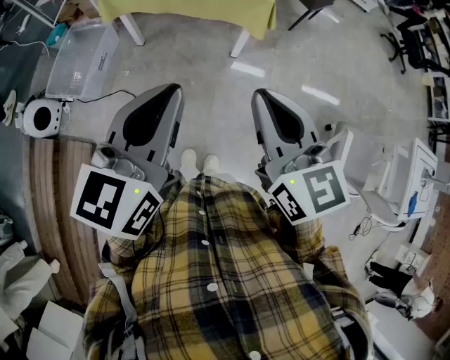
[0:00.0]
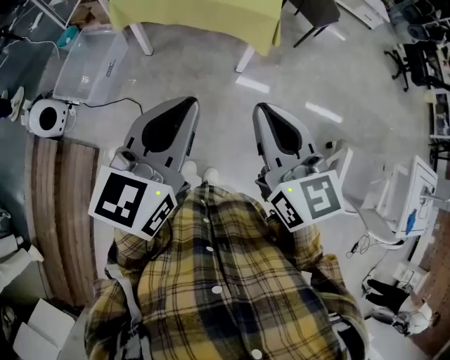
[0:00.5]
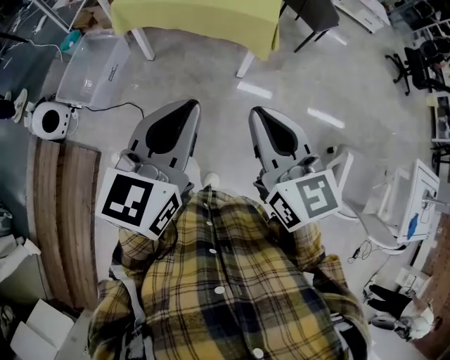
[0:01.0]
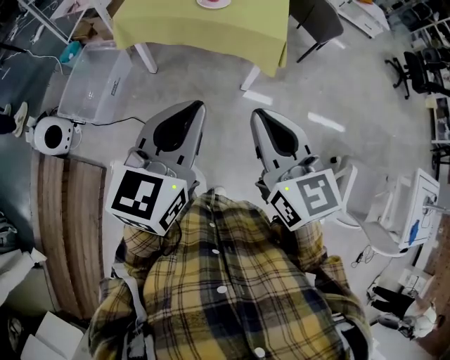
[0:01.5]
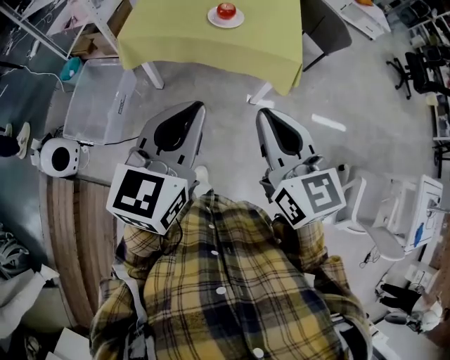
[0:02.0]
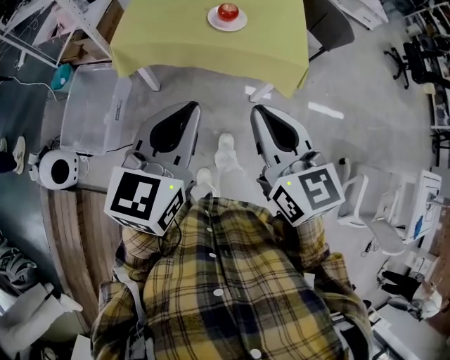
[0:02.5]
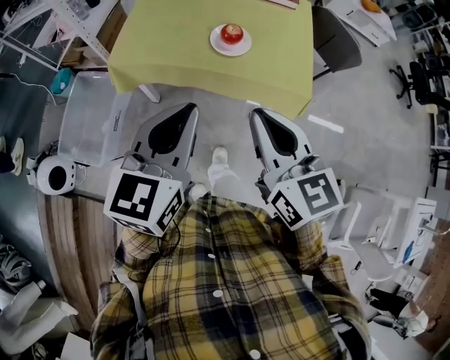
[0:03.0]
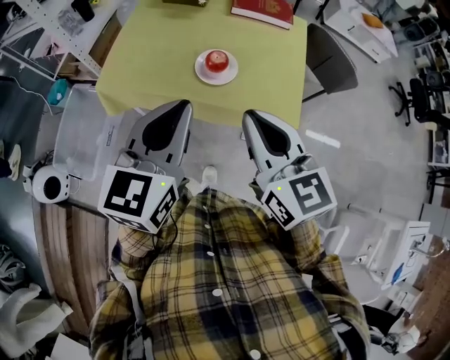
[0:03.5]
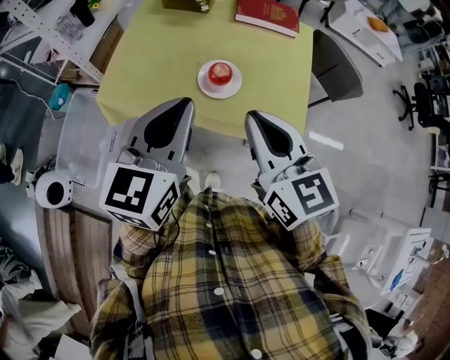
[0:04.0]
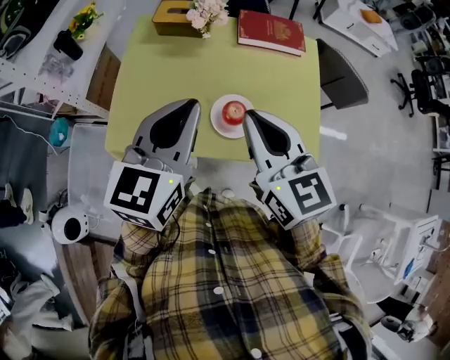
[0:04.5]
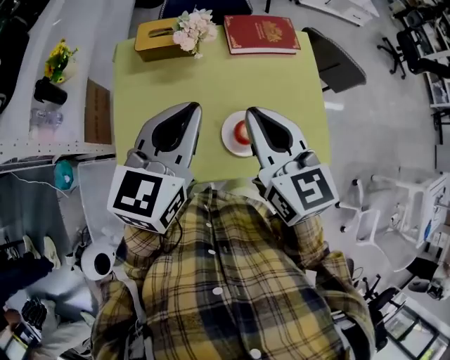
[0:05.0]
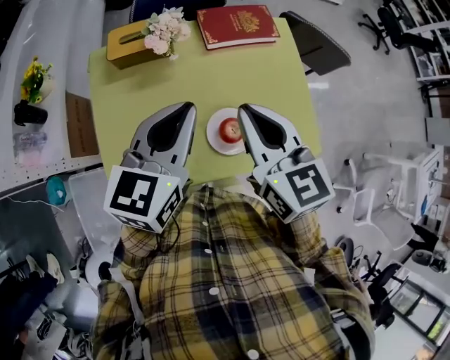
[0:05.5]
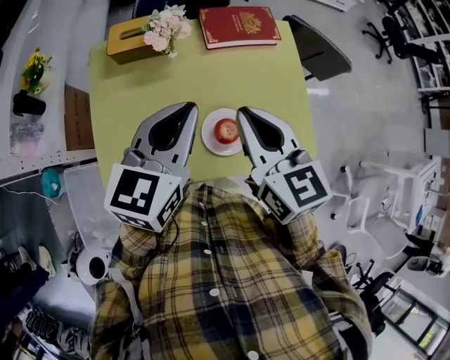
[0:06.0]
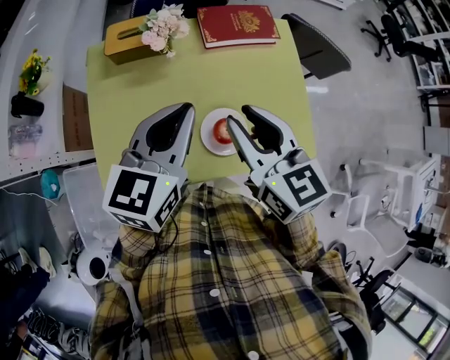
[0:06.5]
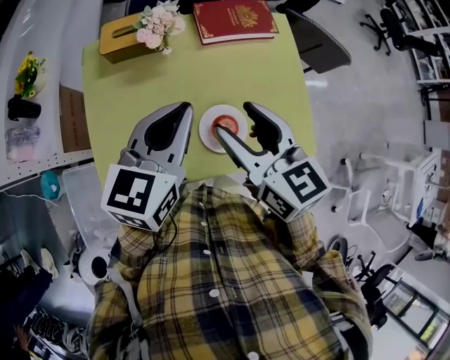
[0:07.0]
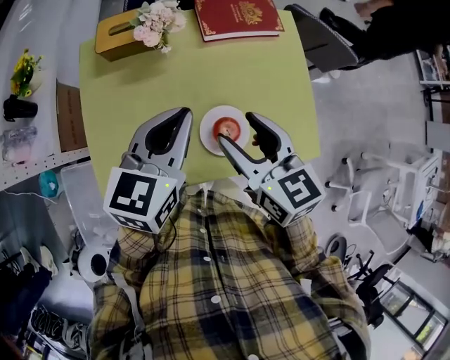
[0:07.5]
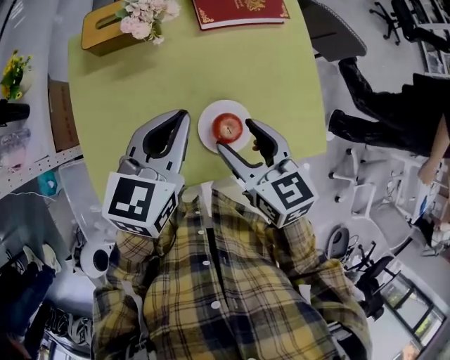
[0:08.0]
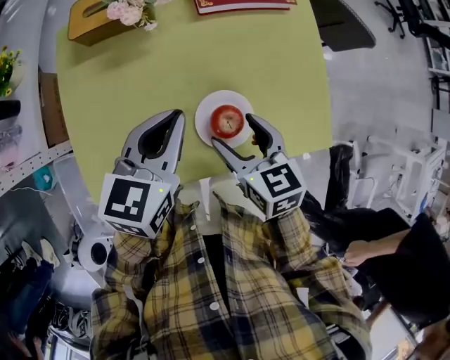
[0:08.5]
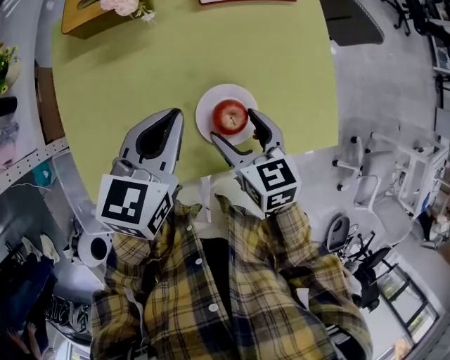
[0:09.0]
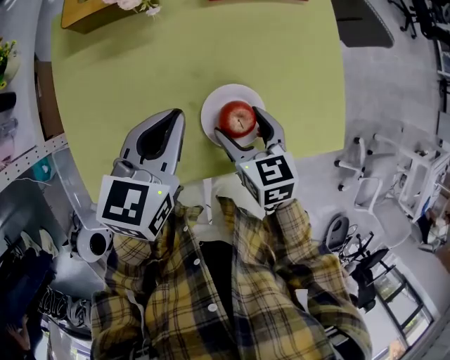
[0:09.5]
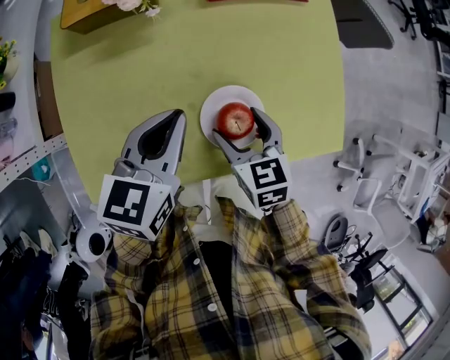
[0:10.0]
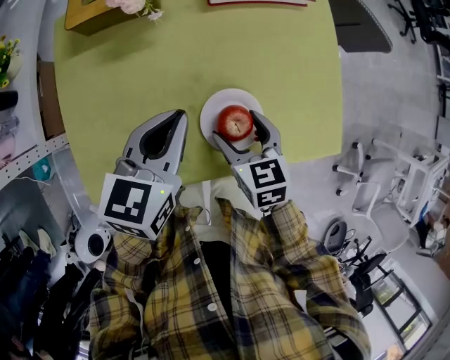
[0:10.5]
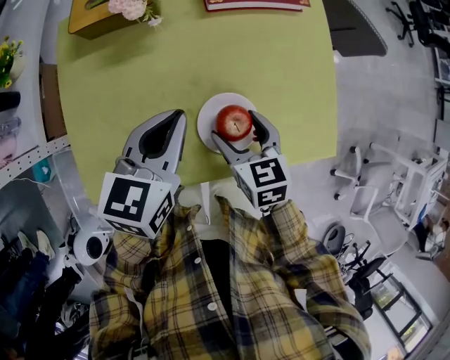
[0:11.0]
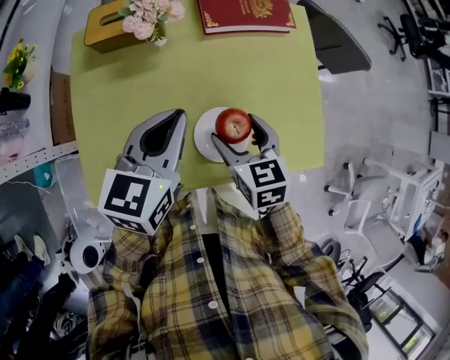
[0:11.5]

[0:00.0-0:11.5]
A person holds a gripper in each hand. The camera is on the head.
0:00.0 to 0:02.0: Both grippers travel together forward and to the left, roughly 20 cm.
0:02.0 to 0:04.0: The grippers both shift forward by some 35 cm.
0:04.0 to 0:06.0: The right gripper changes place by about 25 cm, and turns by approximately 20 degrees. Meanwhile the left gripper shifts by about 25 cm, and changes its angle by about 30 degrees.
0:06.0 to 0:07.5: The two grippers go roughly 5 cm downward. The right gripper opens its fingers.
0:07.5 to 0:09.5: The left gripper goes roughly 15 cm downward. Meanwhile the right gripper heads downward, covering about 20 cm.
0:09.5 to 0:11.5: The two grippers go some 5 cm upward.

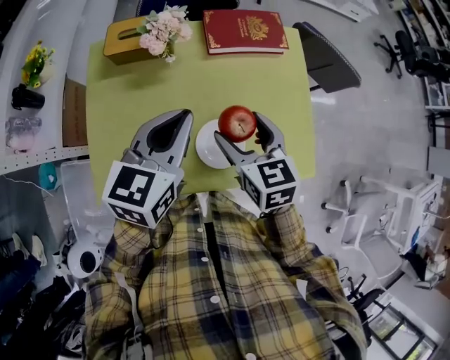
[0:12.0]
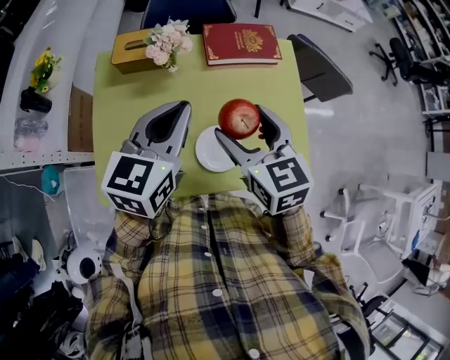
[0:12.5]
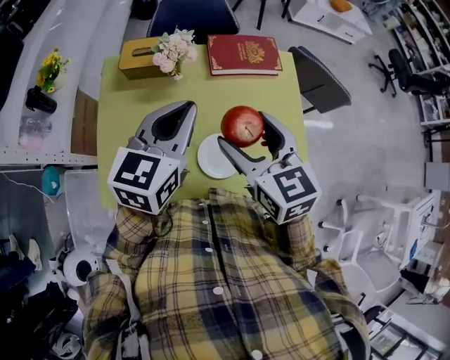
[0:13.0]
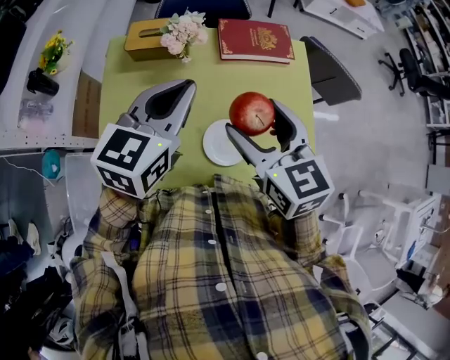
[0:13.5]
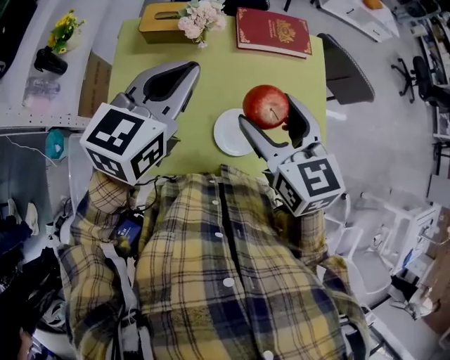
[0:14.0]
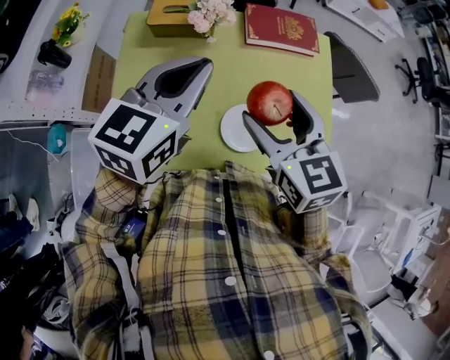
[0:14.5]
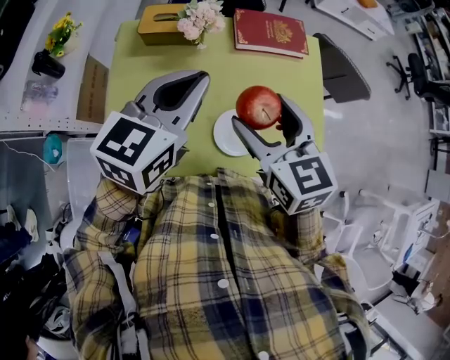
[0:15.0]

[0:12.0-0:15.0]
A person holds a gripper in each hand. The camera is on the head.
0:12.0 to 0:13.5: The left gripper travels upward by about 5 cm. Meanwhile the right gripper is displaced upward by roughly 10 cm.
0:13.5 to 0:15.0: The grippers stay close to where they were, moving slightly.

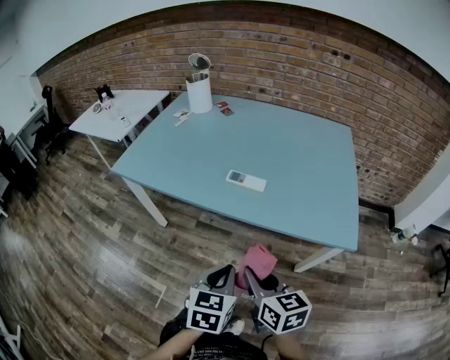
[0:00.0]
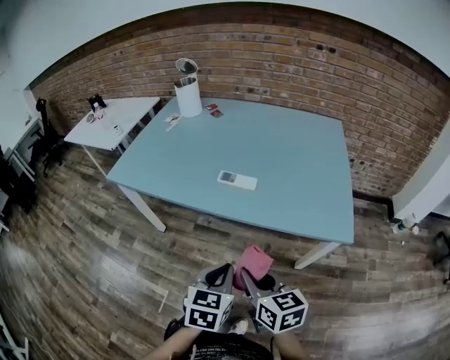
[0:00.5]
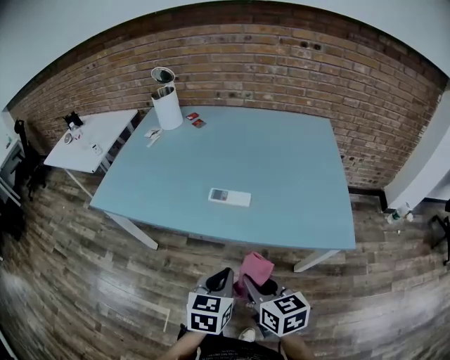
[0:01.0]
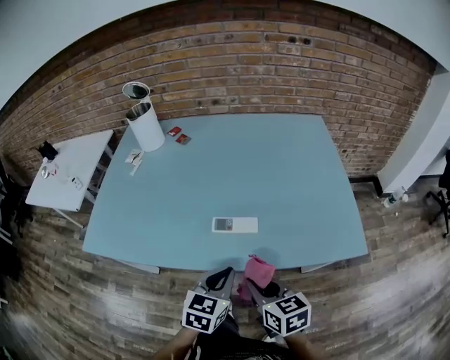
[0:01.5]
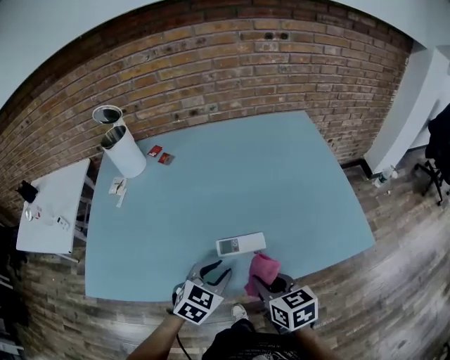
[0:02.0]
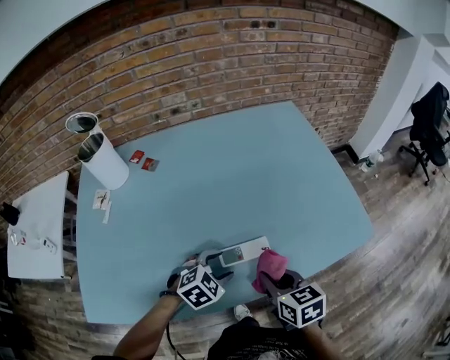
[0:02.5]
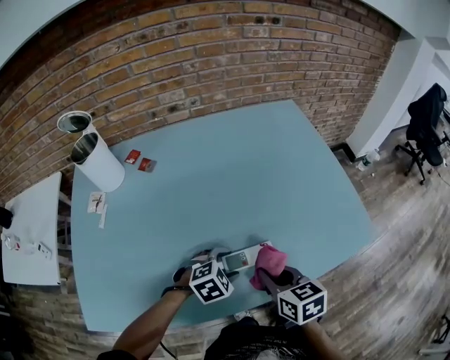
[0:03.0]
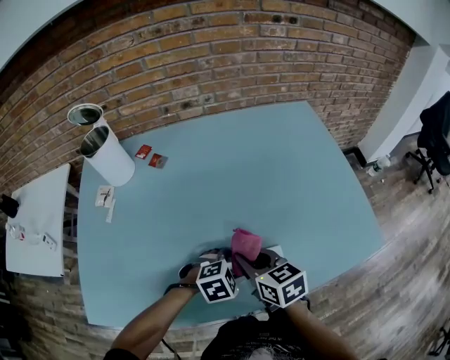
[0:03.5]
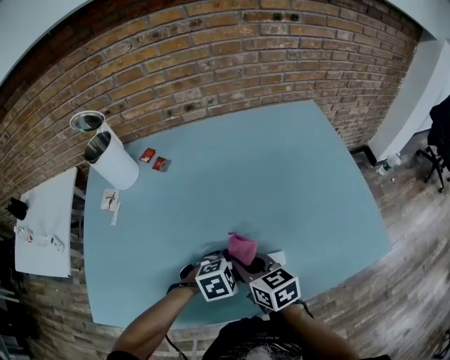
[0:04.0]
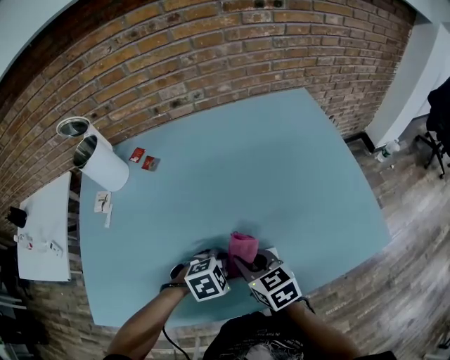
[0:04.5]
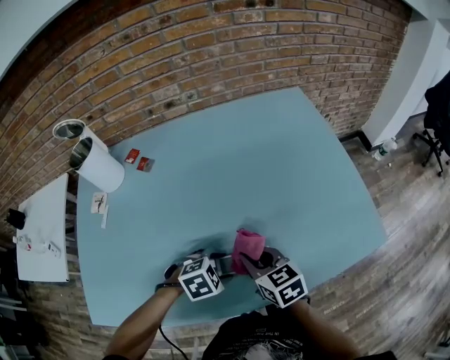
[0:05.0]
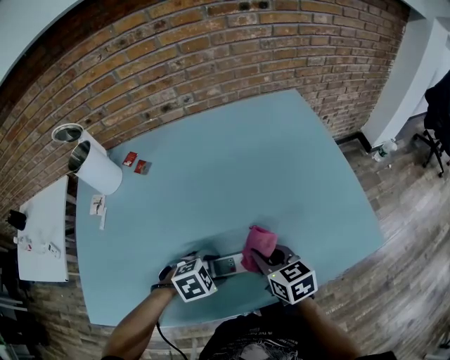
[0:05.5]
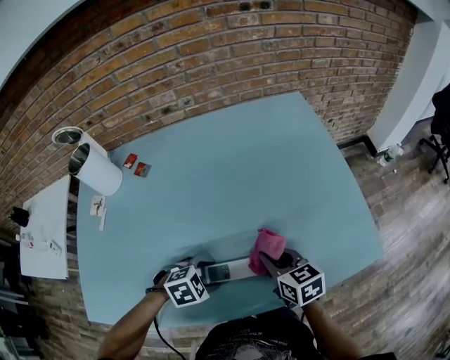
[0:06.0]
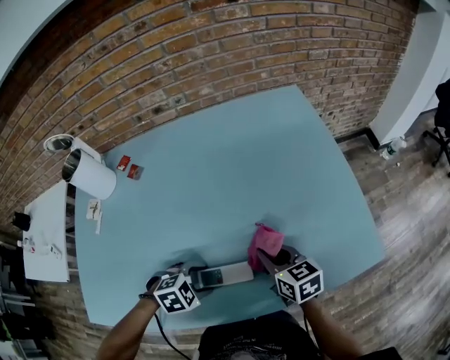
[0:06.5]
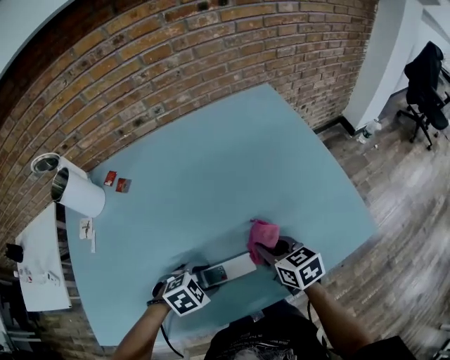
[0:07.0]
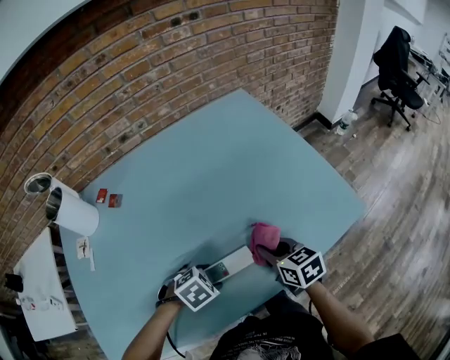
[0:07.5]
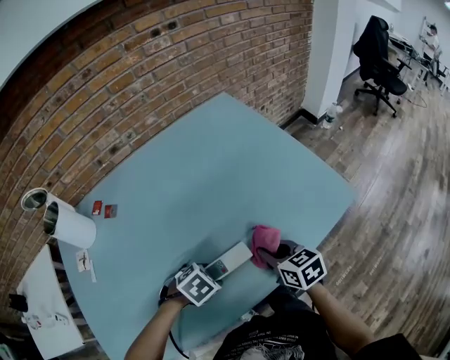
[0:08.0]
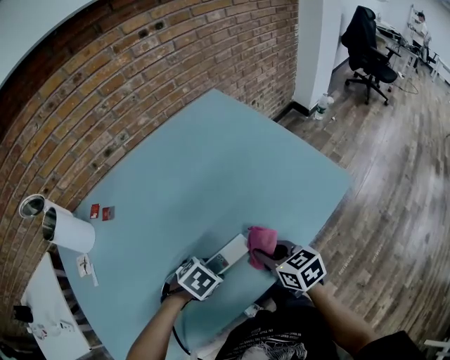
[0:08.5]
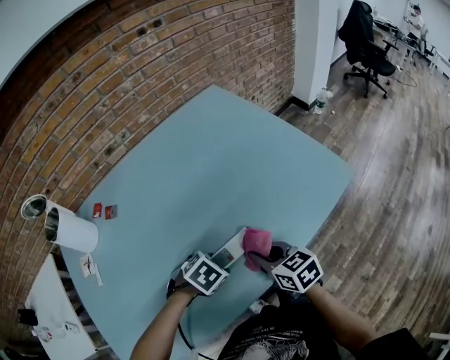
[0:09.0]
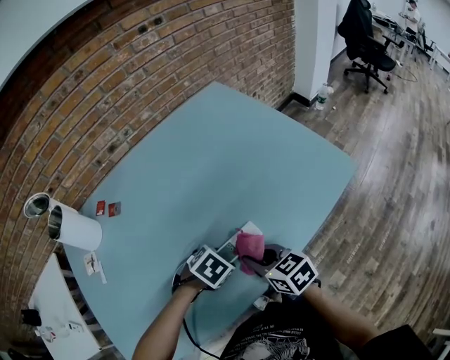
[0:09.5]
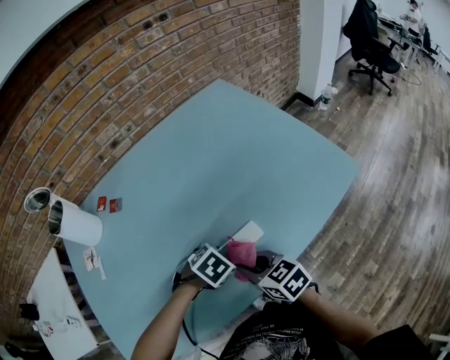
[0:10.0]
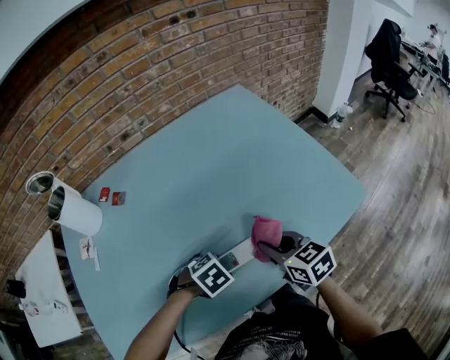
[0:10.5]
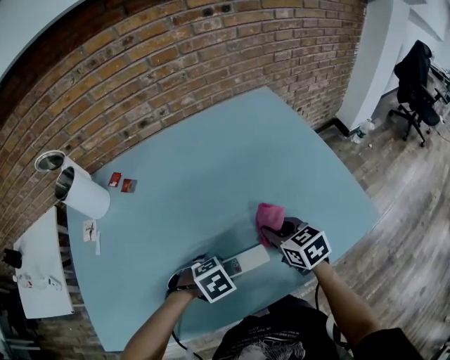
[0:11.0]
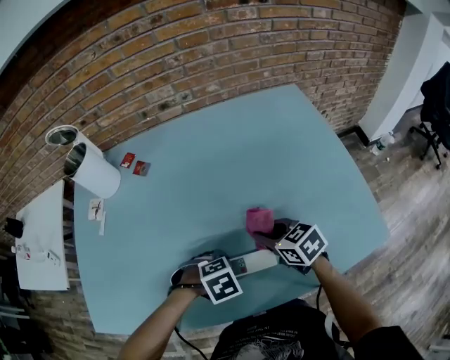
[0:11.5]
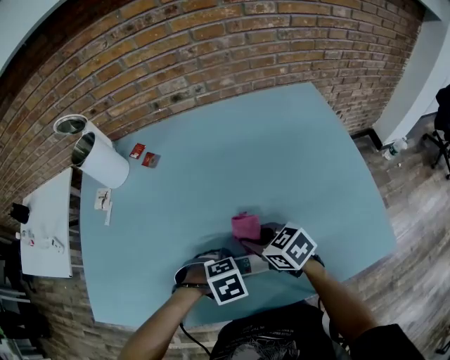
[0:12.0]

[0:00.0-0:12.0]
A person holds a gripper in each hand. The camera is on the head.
0:00.0 to 0:02.0: The left gripper ends up about 30 cm from where it was, turns by roughly 50 degrees, and opens, while the right gripper shifts by approximately 25 cm, and swivels some 20 degrees.
0:02.0 to 0:04.0: The right gripper goes some 15 cm to the left and forward. Meanwhile the left gripper is displaced downward and forward by roughly 10 cm, swivels approximately 40 degrees, and opens up.
0:04.0 to 0:06.0: The right gripper ends up about 15 cm from where it was.
0:06.0 to 0:08.0: The right gripper ends up some 5 cm from where it was.
0:08.0 to 0:10.0: The right gripper moves about 15 cm.
0:10.0 to 0:12.0: The right gripper ends up some 10 cm from where it was, and changes its angle by some 30 degrees.
